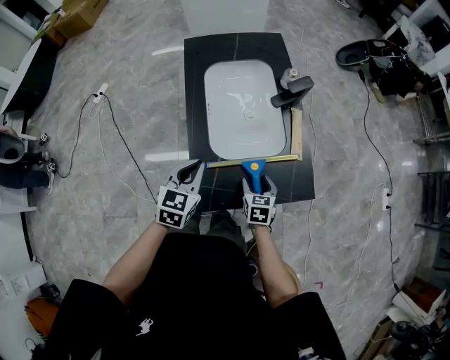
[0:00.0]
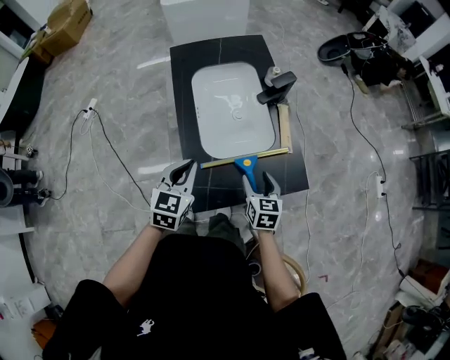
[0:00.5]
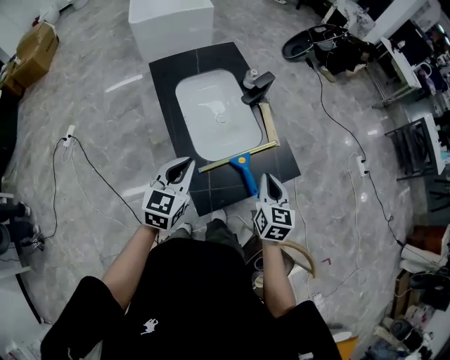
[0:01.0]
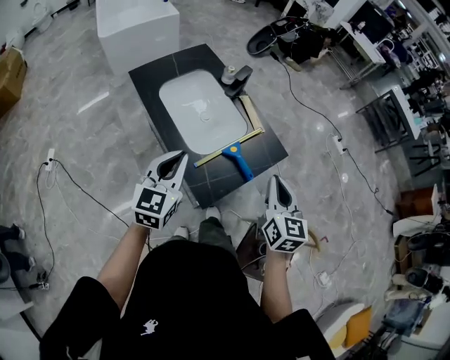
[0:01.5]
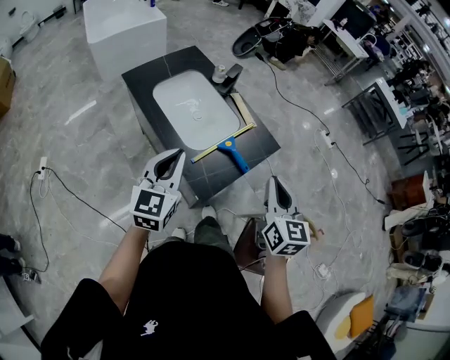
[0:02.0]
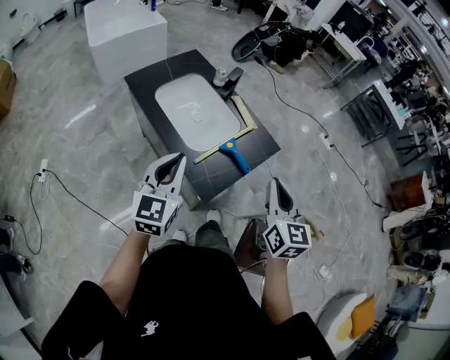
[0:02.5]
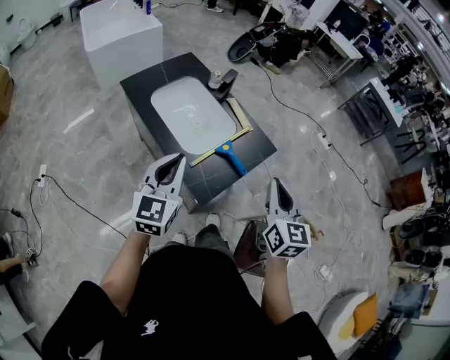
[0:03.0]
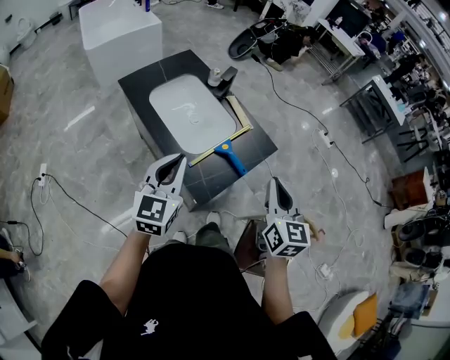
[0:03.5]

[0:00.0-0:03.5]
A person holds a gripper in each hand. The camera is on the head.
0:00.0 to 0:02.0: The right gripper travels upward by approximately 30 cm, points its fingers roughly 30 degrees further upward, and closes. The left gripper shifts about 15 cm upward, and rotates approximately 40 degrees.
0:02.0 to 0:03.5: The grippers make only small movements.

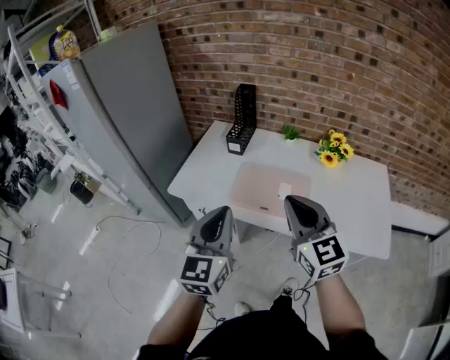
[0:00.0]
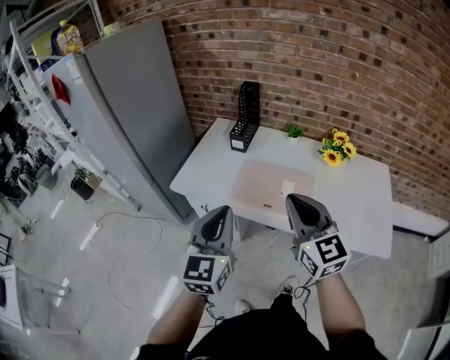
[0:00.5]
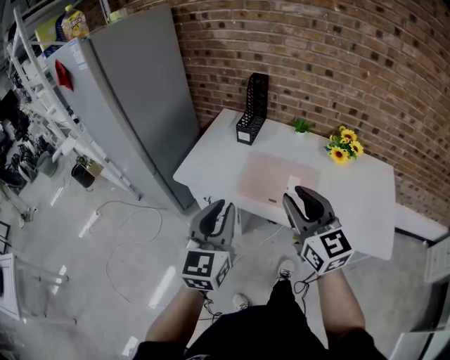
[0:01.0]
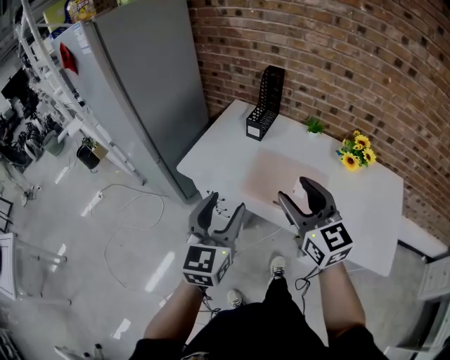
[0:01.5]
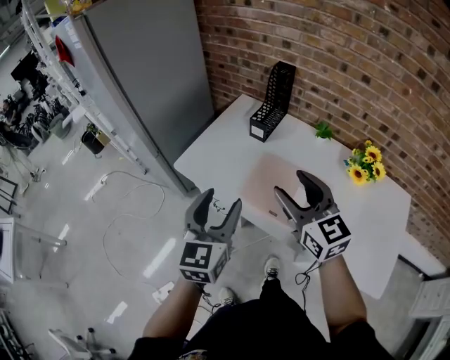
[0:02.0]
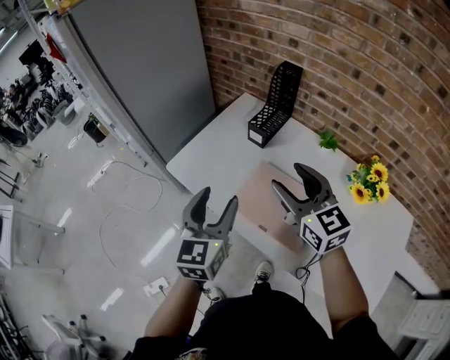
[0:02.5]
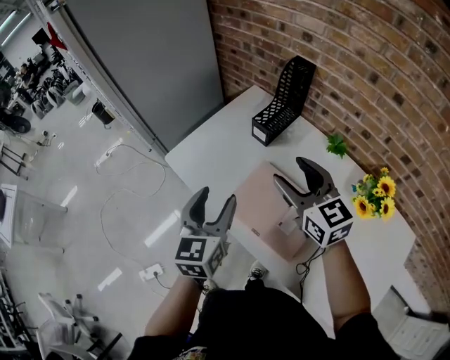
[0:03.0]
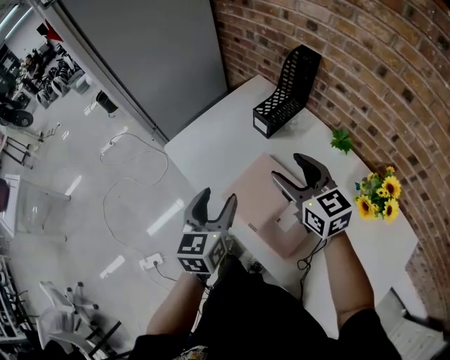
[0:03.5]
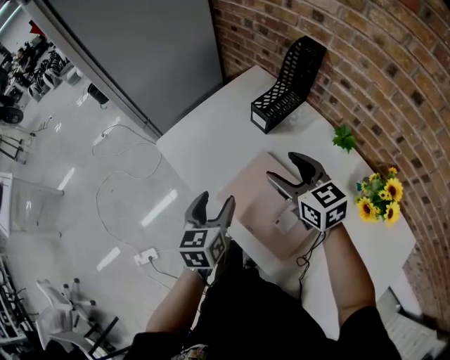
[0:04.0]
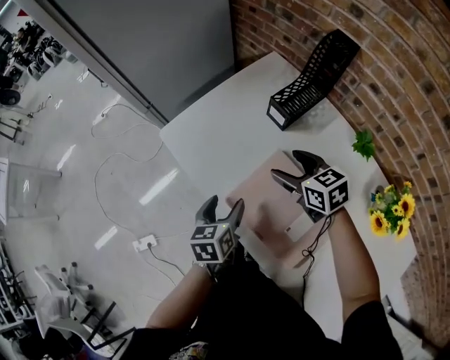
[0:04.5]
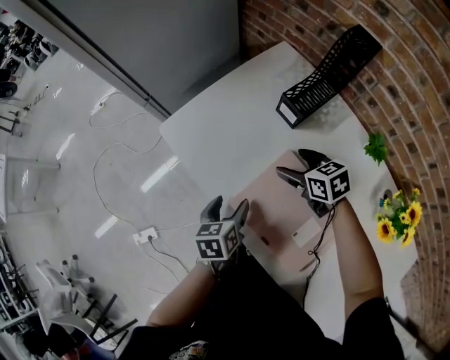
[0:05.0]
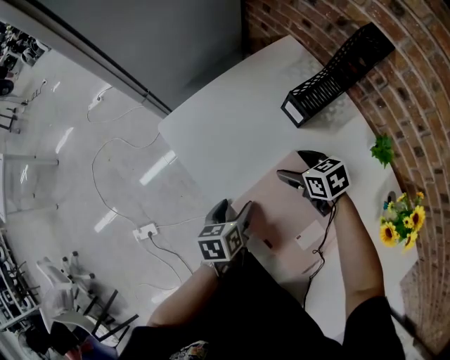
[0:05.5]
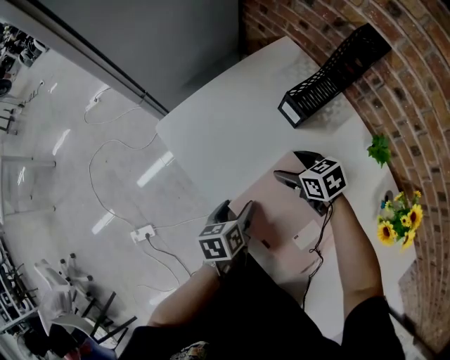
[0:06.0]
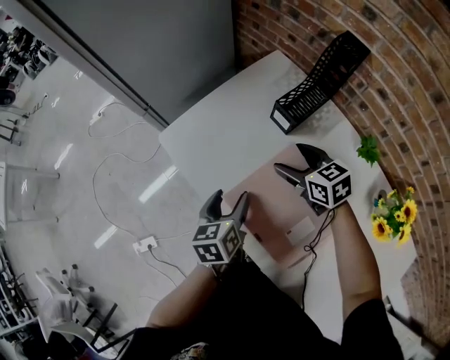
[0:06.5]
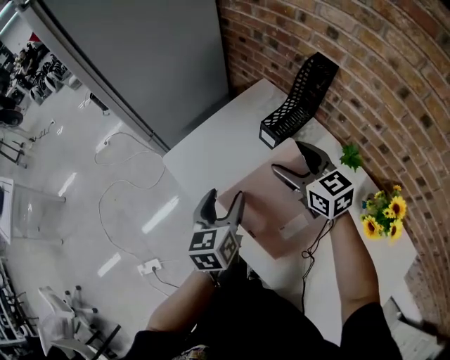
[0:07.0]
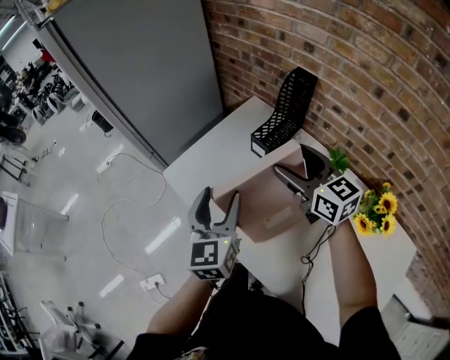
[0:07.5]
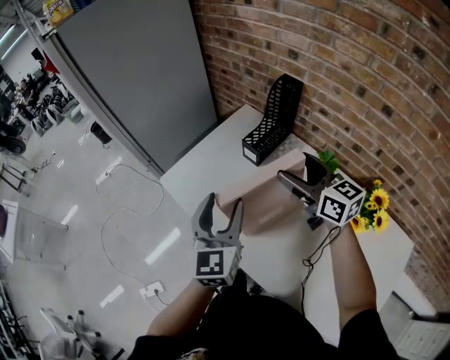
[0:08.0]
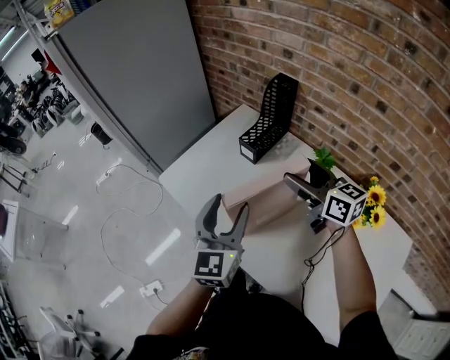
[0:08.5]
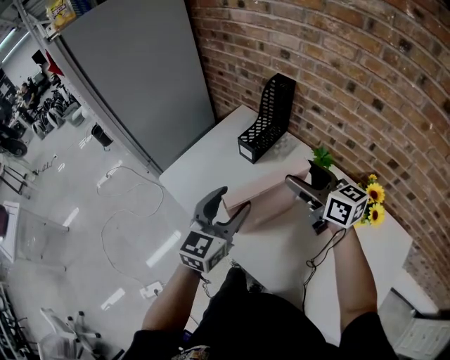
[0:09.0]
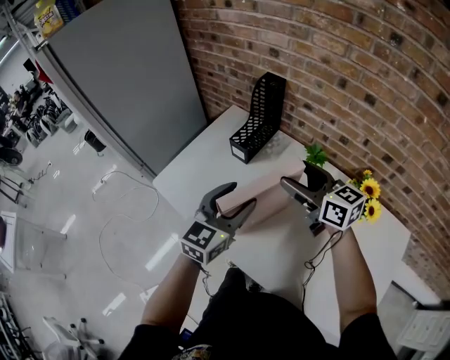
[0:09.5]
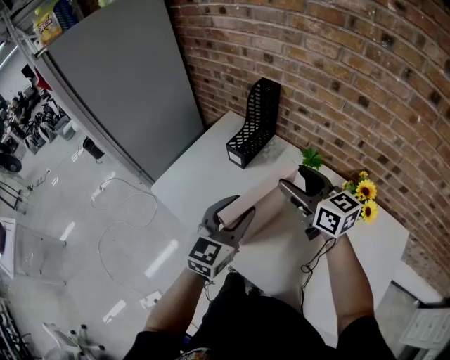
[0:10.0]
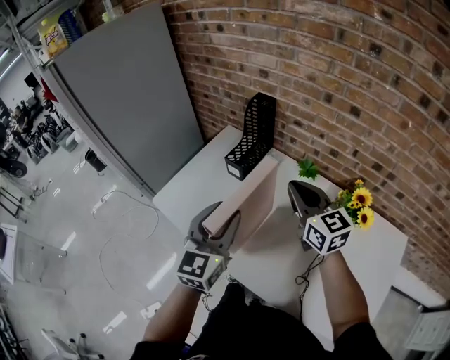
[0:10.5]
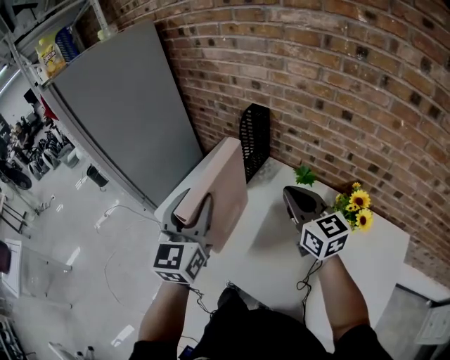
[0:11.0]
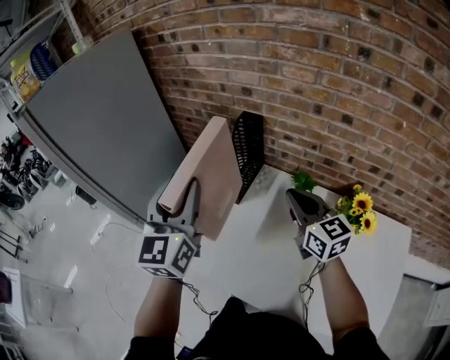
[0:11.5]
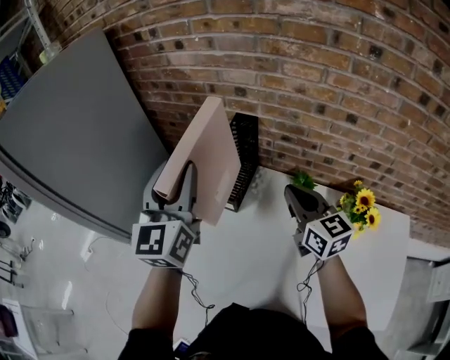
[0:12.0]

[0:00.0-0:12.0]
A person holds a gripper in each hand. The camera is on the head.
0:00.0 to 0:02.0: The left gripper moves forward and downward, some 10 cm, and opens its fingers. The right gripper travels forward by approximately 15 cm, and opens.
0:02.0 to 0:04.0: The right gripper is displaced forward, downward and to the right by approximately 25 cm, and changes its angle by roughly 30 degrees, while the left gripper shifts some 20 cm downward, forward and to the right, and changes its angle by some 30 degrees.
0:04.0 to 0:06.0: Both grippers travel together downward, some 20 cm. The left gripper rotates about 30 degrees. The right gripper swivels approximately 30 degrees.
0:06.0 to 0:08.0: The grippers both shift upward by some 30 cm. The left gripper tips its fingers upward by some 40 degrees, while the right gripper angles its fingers upward, by approximately 40 degrees.
0:08.0 to 0:10.0: The right gripper ends up about 5 cm from where it was. The left gripper shifts about 10 cm to the right, and turns by roughly 30 degrees.
0:10.0 to 0:12.0: The left gripper travels forward, upward and to the left by roughly 30 cm. Meanwhile the right gripper shifts approximately 10 cm forward, rotates roughly 20 degrees, and closes its fingers.

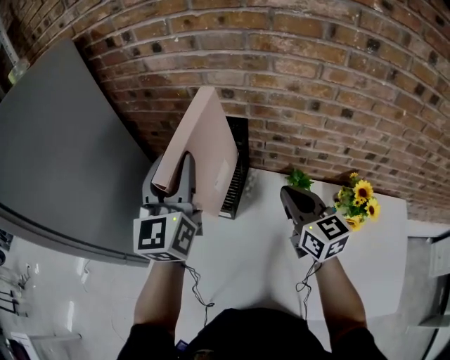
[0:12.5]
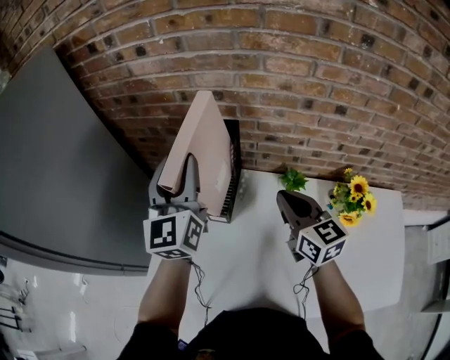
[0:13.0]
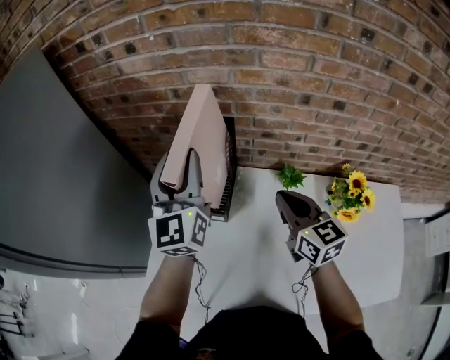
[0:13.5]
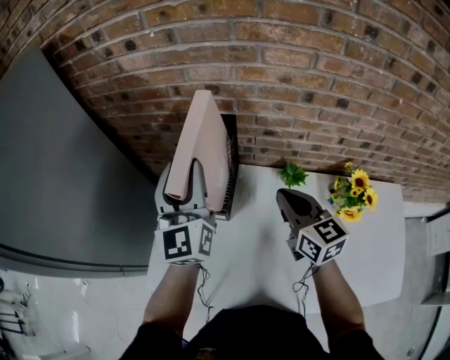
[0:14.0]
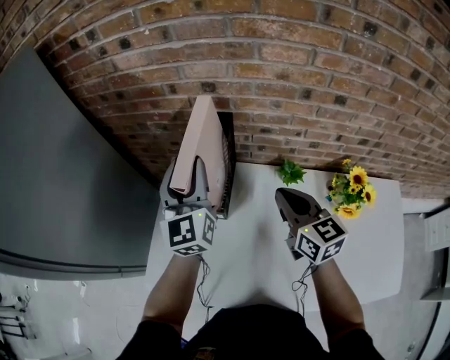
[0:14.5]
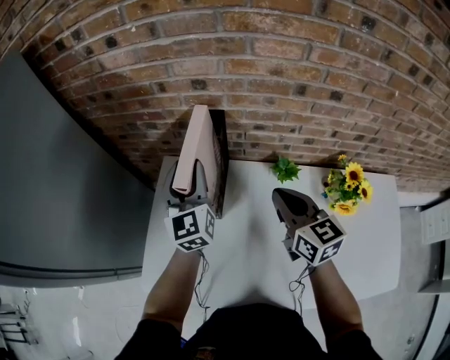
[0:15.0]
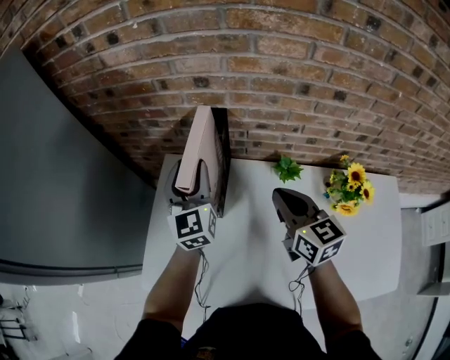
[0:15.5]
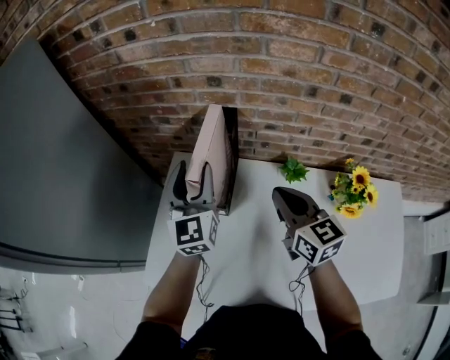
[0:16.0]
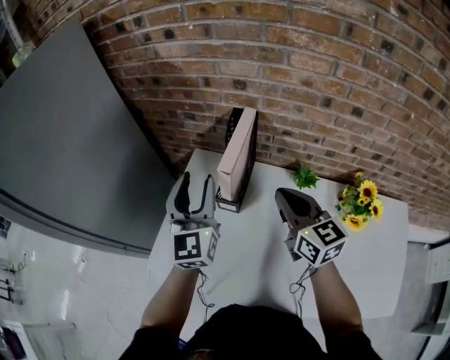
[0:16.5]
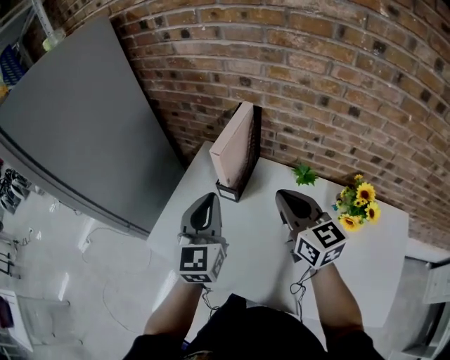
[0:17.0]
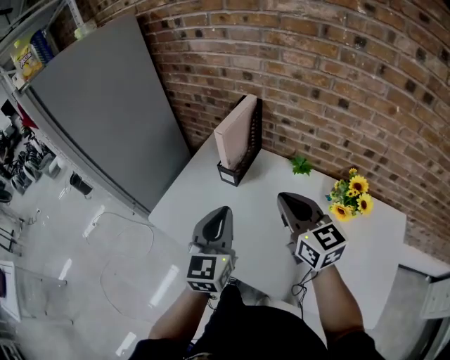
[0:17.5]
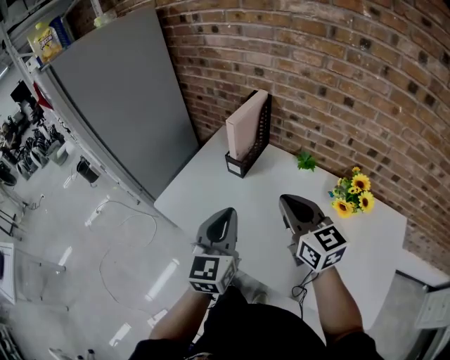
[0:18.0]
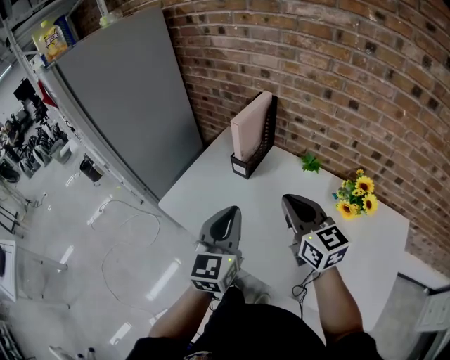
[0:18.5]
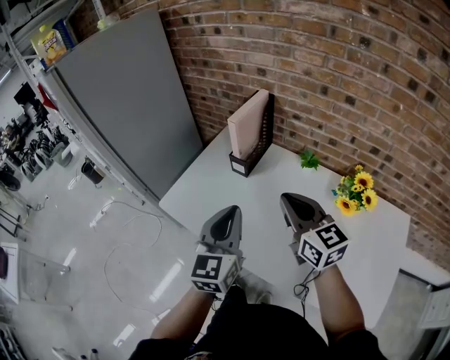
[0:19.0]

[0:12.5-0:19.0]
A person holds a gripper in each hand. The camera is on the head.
0:12.5 to 0:14.5: The left gripper heads downward and forward, covering roughly 10 cm.
0:14.5 to 0:17.0: The left gripper heads backward, covering some 20 cm, and closes up. Meanwhile the right gripper goes roughly 5 cm backward.
0:17.0 to 0:19.0: The two grippers go some 15 cm backward.

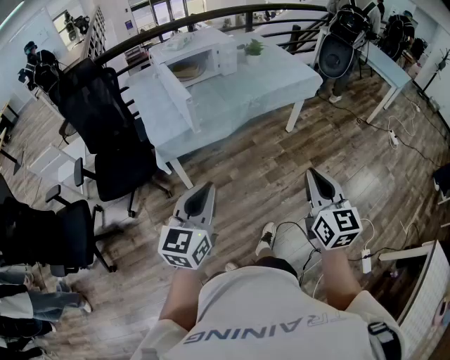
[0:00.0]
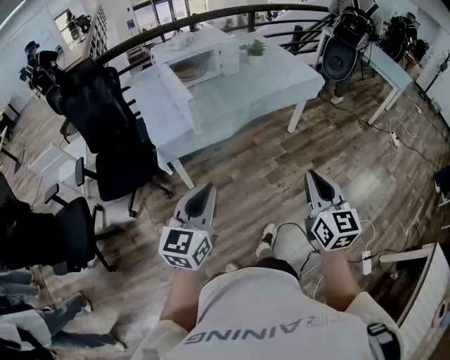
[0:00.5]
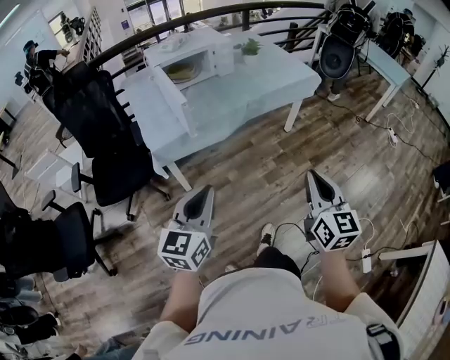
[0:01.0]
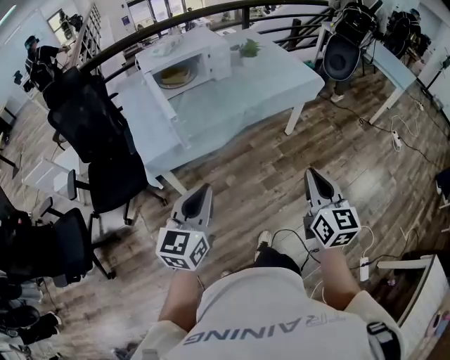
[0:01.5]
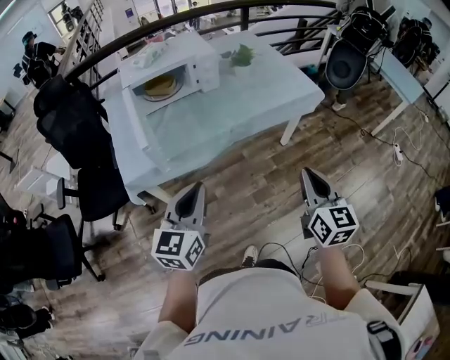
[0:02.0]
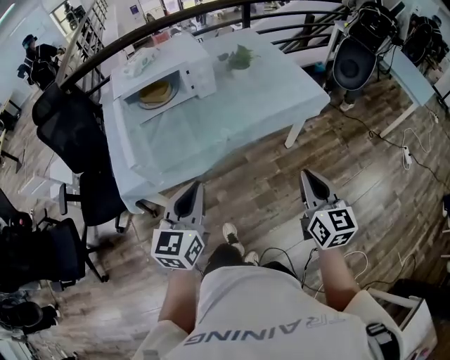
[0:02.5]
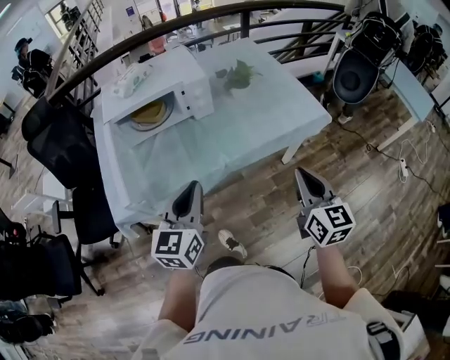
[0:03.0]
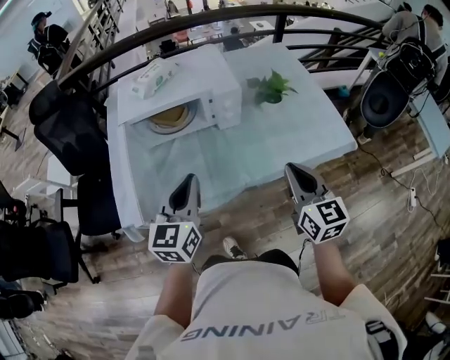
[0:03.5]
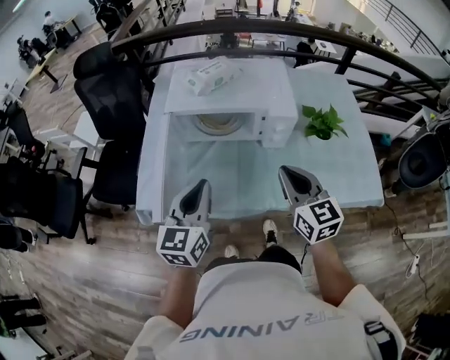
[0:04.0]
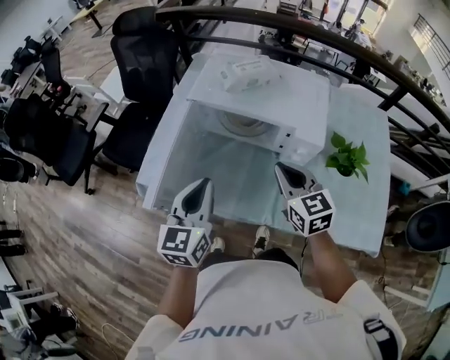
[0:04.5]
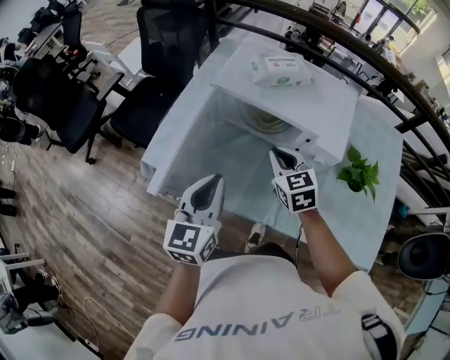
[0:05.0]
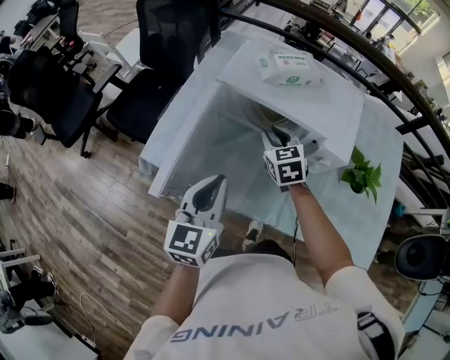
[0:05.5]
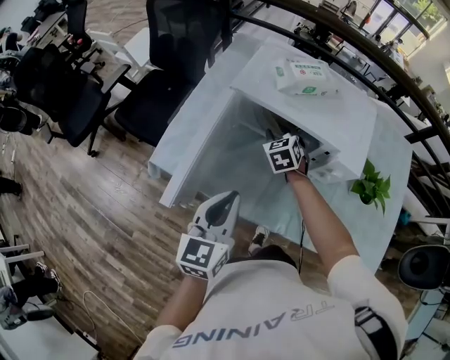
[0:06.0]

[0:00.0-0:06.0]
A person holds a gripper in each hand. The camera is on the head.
0:00.0 to 0:02.0: The two grippers go approximately 25 cm forward.
0:02.0 to 0:04.0: The left gripper ends up roughly 35 cm from where it was, and rotates about 30 degrees. The right gripper moves about 50 cm, and swivels approximately 40 degrees.
0:04.0 to 0:06.0: The right gripper heads forward and downward, covering some 35 cm, swivels roughly 40 degrees, and opens up; the left gripper shifts by approximately 5 cm.
